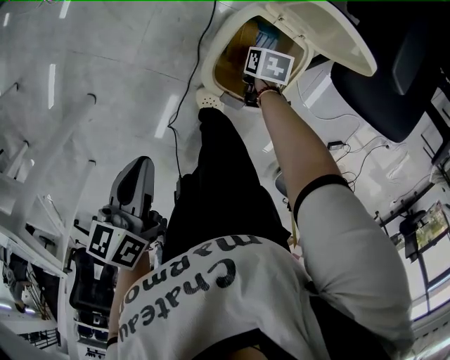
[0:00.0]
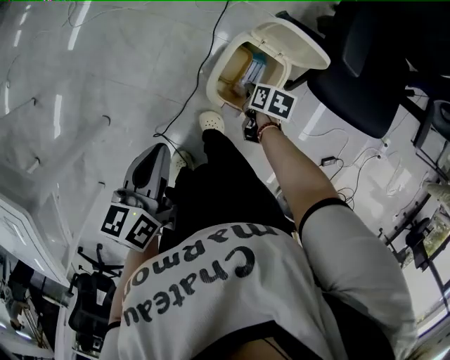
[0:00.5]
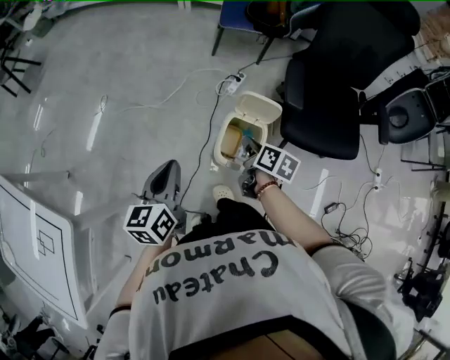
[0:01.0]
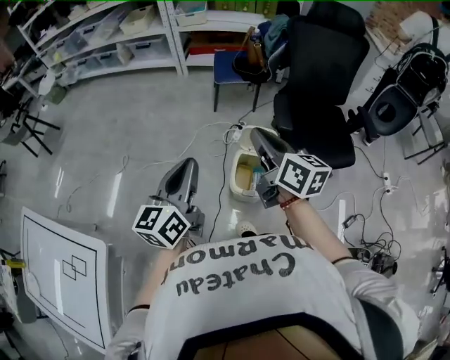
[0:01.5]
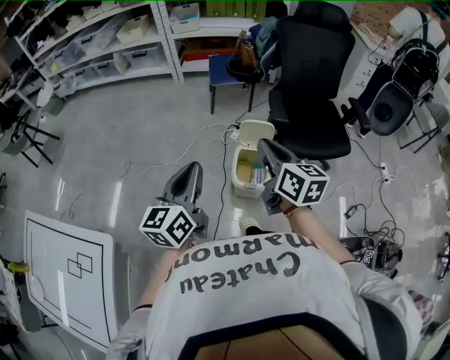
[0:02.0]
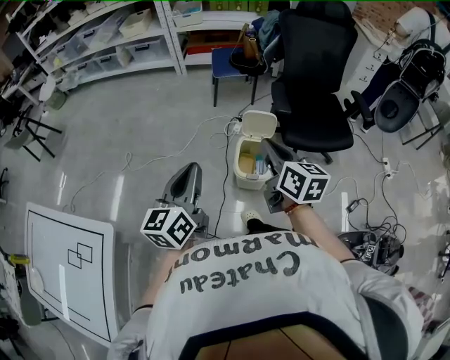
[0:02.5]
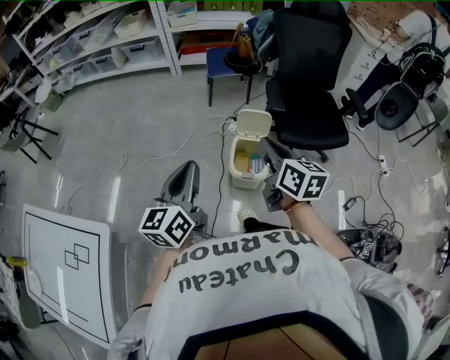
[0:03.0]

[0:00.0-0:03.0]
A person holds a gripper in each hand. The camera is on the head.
0:00.0 to 0:01.5: The right gripper moves upward, roughly 80 cm, and points its fingers approximately 70 degrees further upward. The left gripper goes roughly 40 cm upward, and angles its fingers upward, by some 40 degrees.
0:01.5 to 0:03.0: The two grippers go some 10 cm backward.

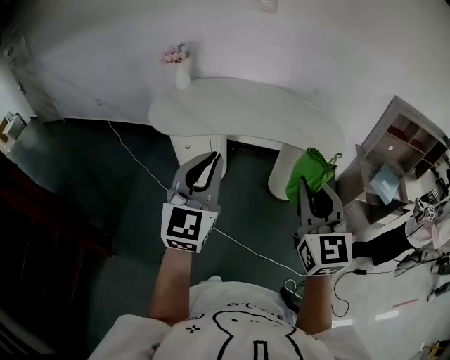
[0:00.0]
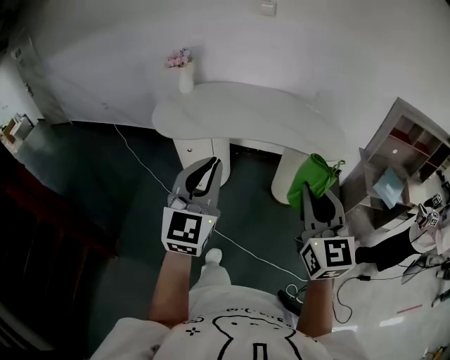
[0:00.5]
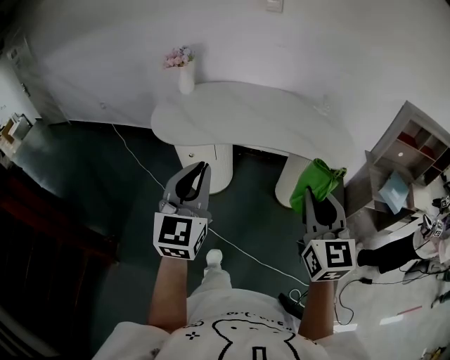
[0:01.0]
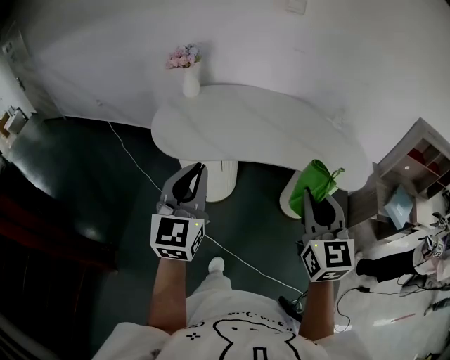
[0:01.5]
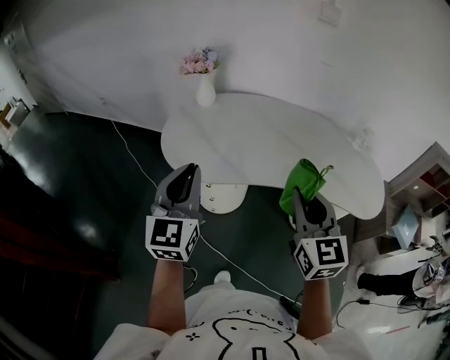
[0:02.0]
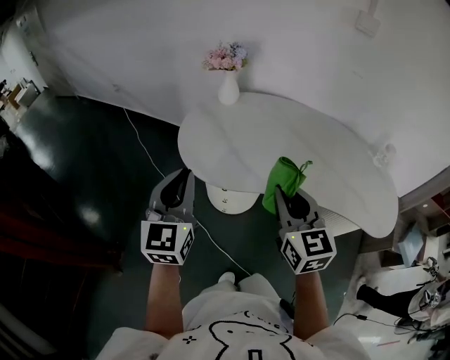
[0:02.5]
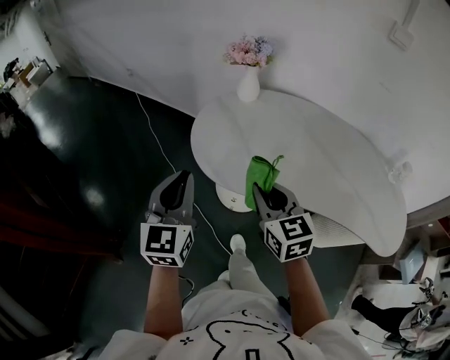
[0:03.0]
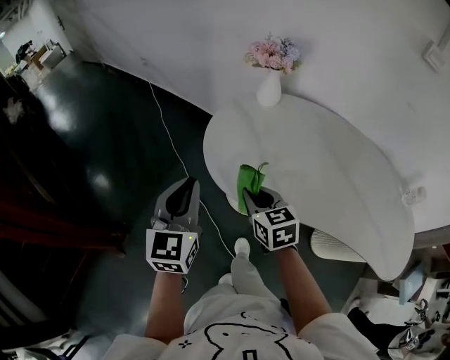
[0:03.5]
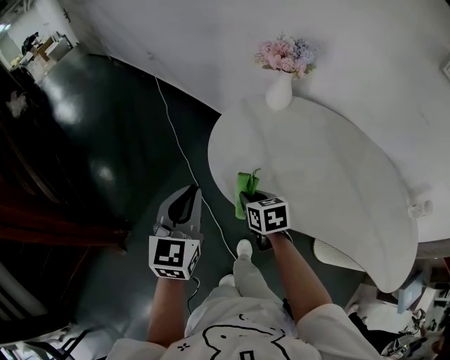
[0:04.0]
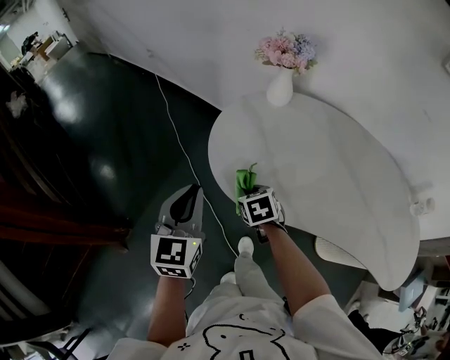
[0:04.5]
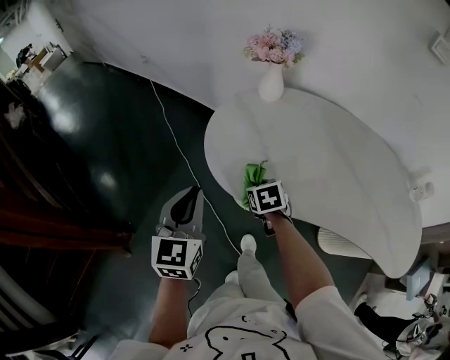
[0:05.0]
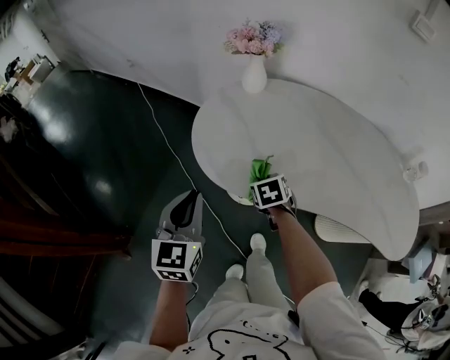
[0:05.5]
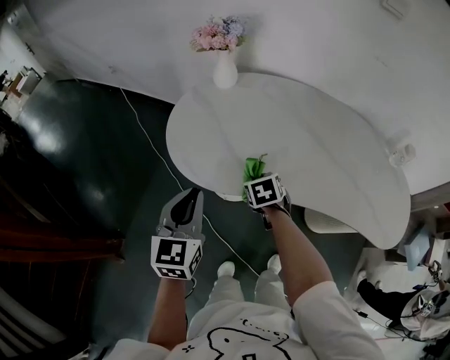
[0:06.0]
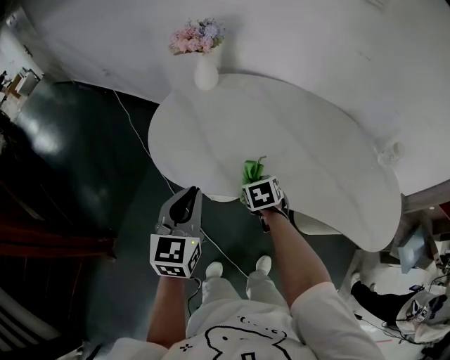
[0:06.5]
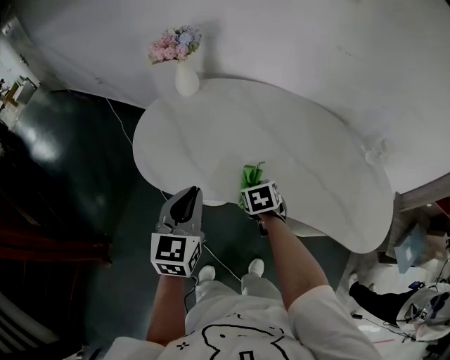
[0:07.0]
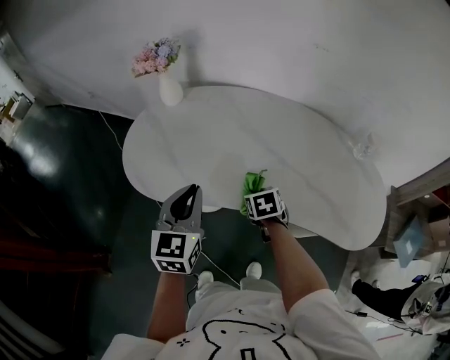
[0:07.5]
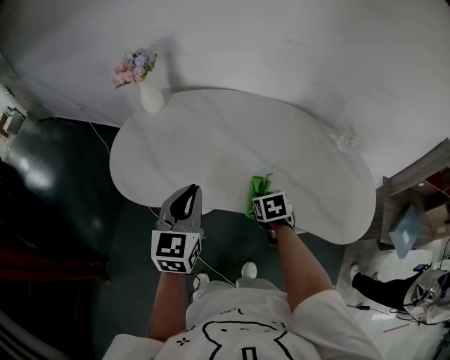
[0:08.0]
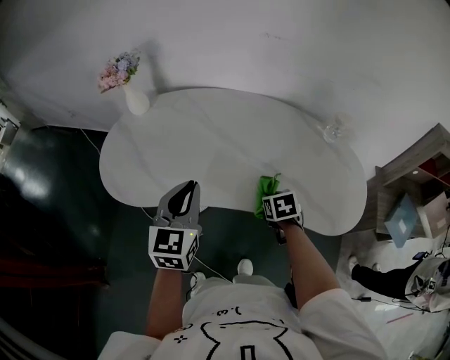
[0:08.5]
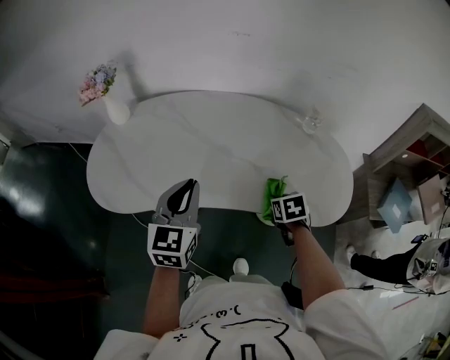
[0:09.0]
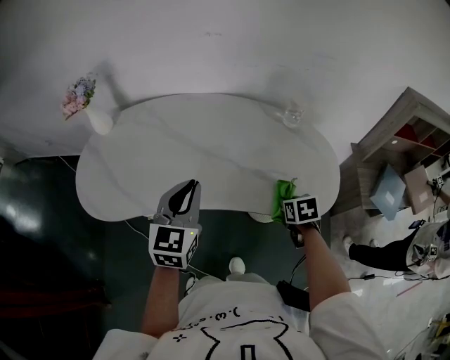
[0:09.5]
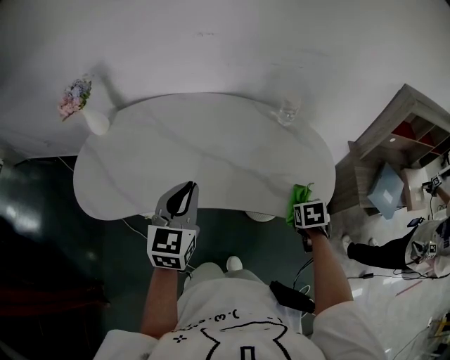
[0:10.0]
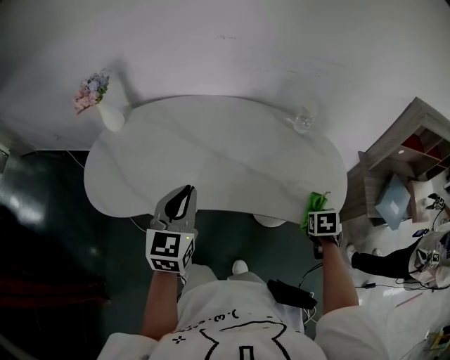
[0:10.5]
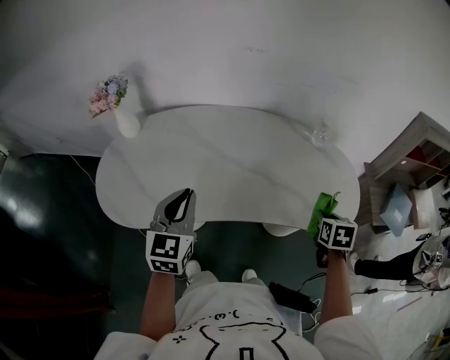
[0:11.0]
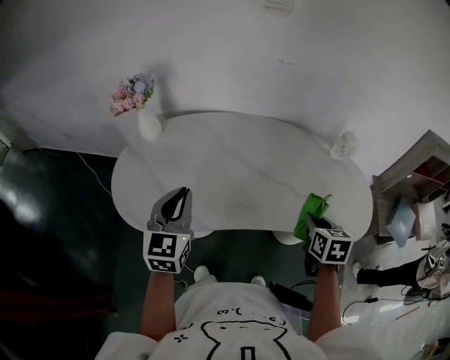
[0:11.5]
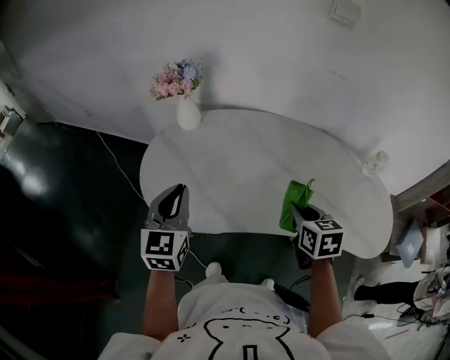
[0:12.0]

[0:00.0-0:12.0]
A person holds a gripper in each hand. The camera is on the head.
0:00.0 to 0:02.0: Both grippers travel together forward and to the left, about 35 cm.
0:02.0 to 0:04.0: The right gripper moves some 50 cm, and angles its fingers downward, by approximately 40 degrees, while the left gripper changes place by roughly 25 cm, and rotates about 20 degrees.
0:04.0 to 0:06.0: The right gripper shifts approximately 15 cm to the right, and turns by about 20 degrees, while the left gripper is displaced to the right and backward by approximately 15 cm.
0:06.0 to 0:08.0: Both grippers move to the right, approximately 25 cm.
0:08.0 to 0:10.0: The left gripper heads to the right, covering roughly 20 cm; the right gripper travels to the right by about 35 cm, and turns by roughly 20 degrees.
0:10.0 to 0:12.0: The pair of grippers is taken to the left, about 40 cm. The right gripper rotates some 30 degrees.

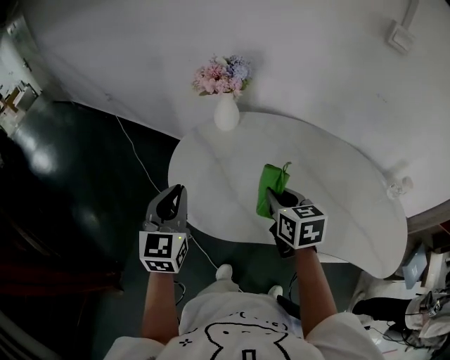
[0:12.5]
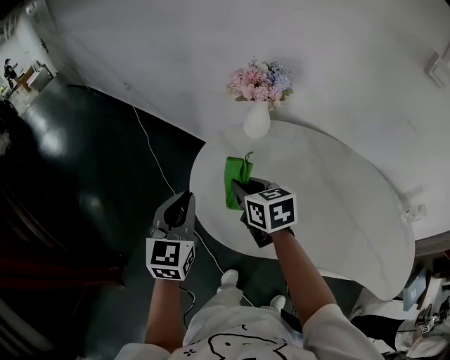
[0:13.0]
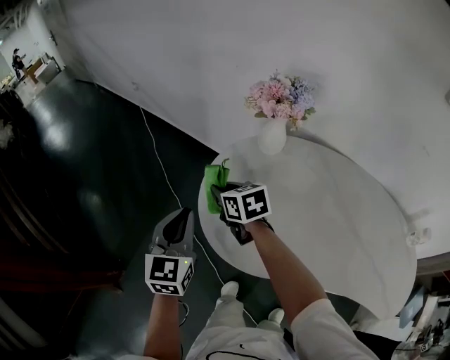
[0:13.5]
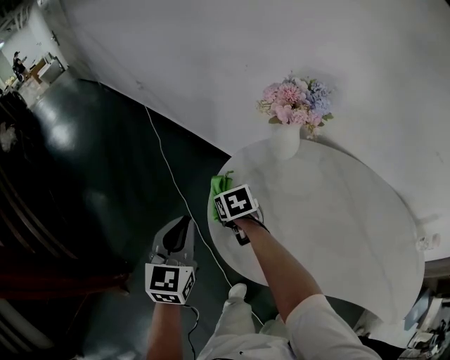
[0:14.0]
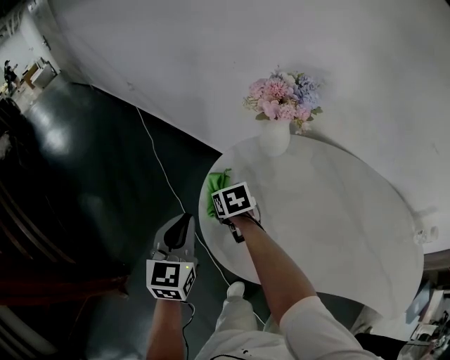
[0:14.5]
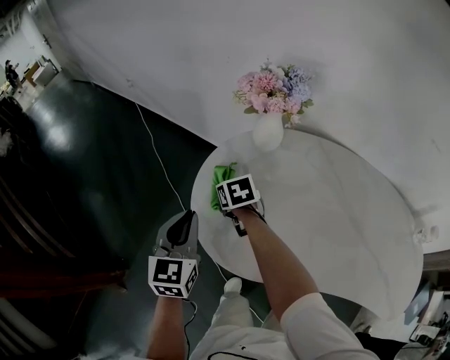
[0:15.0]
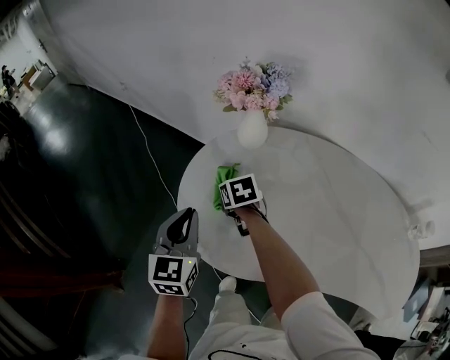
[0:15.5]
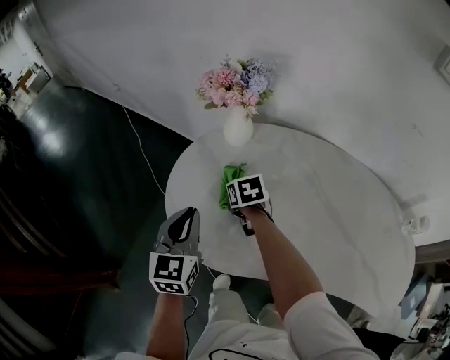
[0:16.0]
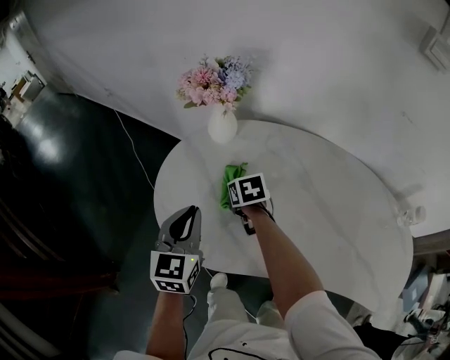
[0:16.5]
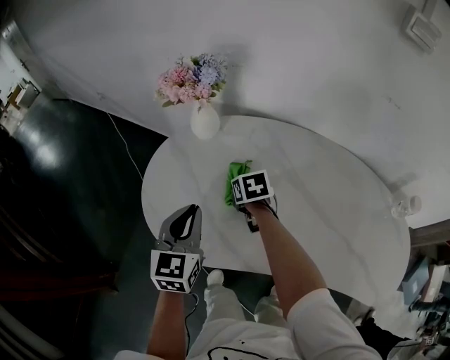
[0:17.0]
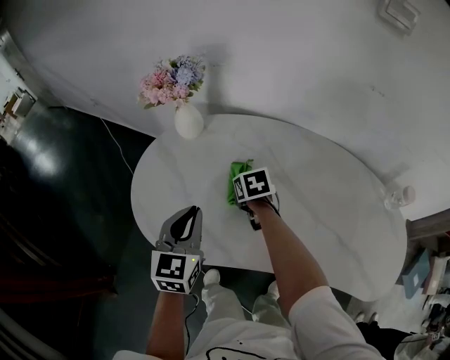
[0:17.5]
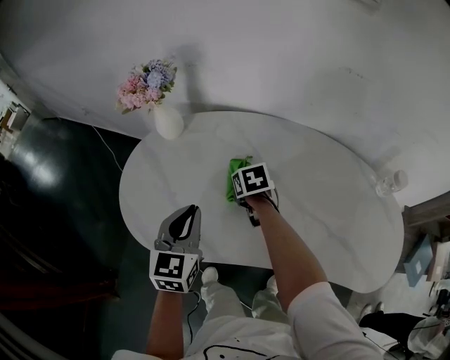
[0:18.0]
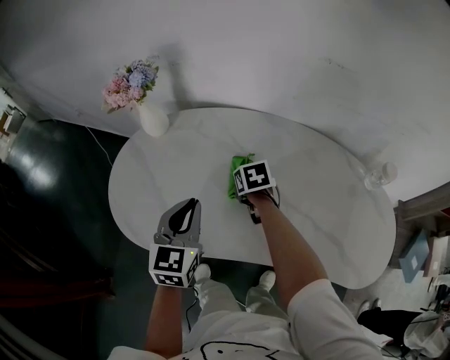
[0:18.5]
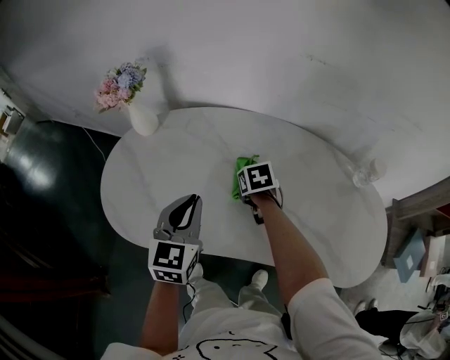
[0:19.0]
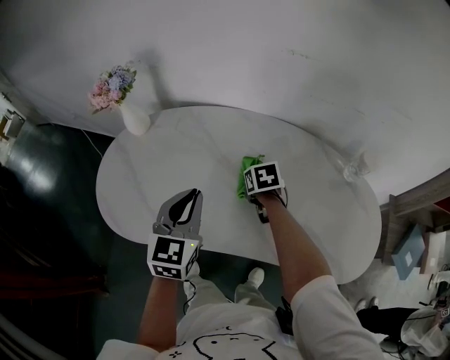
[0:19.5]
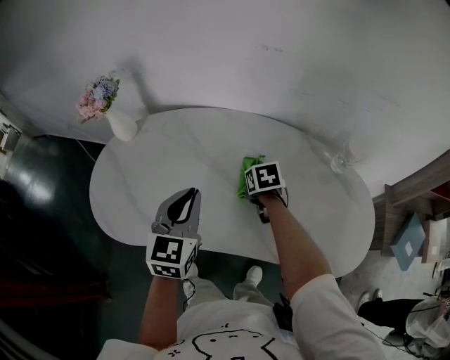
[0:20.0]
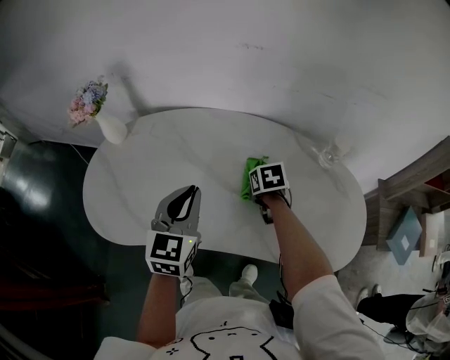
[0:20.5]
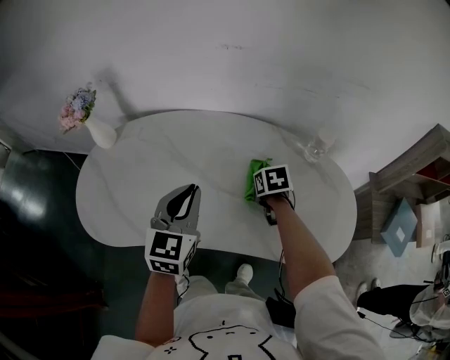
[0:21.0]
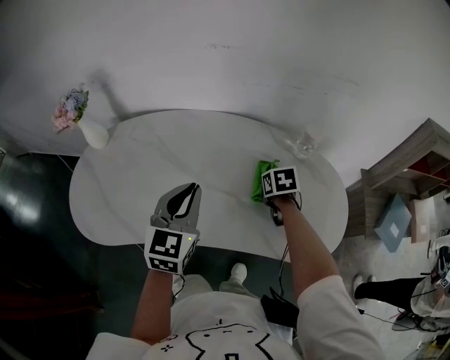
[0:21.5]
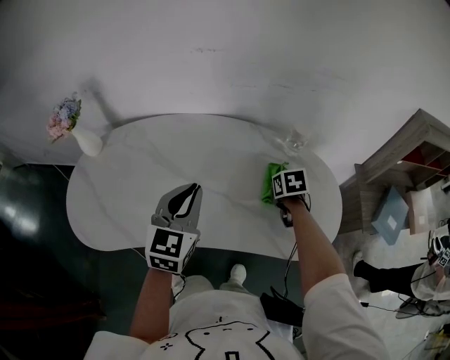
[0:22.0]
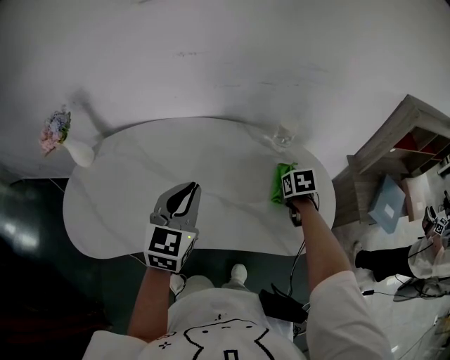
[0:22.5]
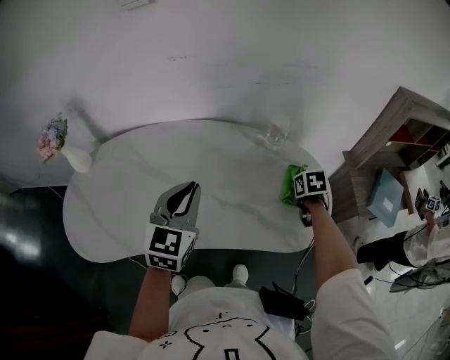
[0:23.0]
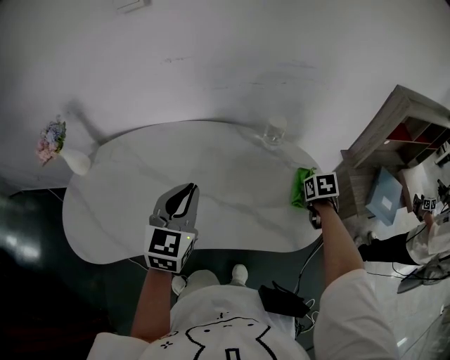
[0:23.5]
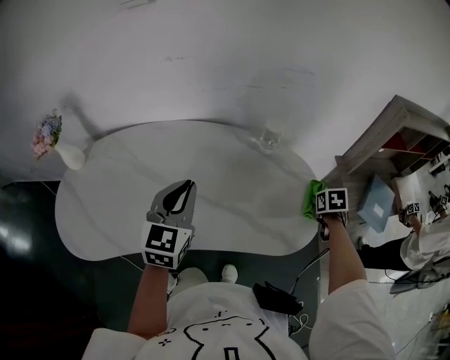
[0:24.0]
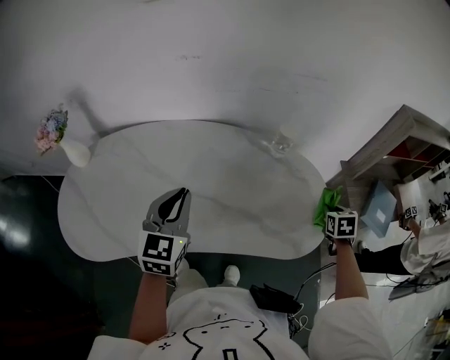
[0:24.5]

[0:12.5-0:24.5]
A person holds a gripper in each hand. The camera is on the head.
0:12.5 to 0:14.5: The right gripper goes some 35 cm forward, to the left and downward, and rotates approximately 30 degrees. Meanwhile the left gripper is displaced forward, to the left and downward by about 15 cm.
0:14.5 to 0:16.5: The two grippers go some 20 cm to the right.
0:16.5 to 0:18.5: Both grippers travel together to the right, about 20 cm.
0:18.5 to 0:20.5: The two grippers go approximately 20 cm to the right.
0:20.5 to 0:22.5: The left gripper is displaced to the right by roughly 10 cm. Meanwhile the right gripper heads to the right, covering approximately 25 cm.
0:22.5 to 0:24.5: The right gripper travels to the right by some 20 cm.
